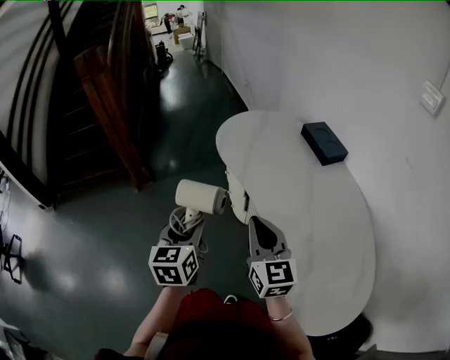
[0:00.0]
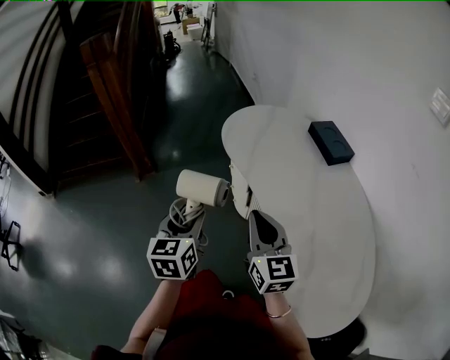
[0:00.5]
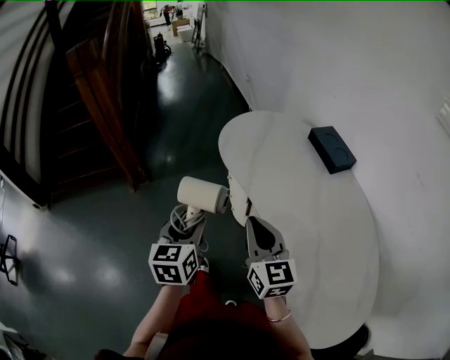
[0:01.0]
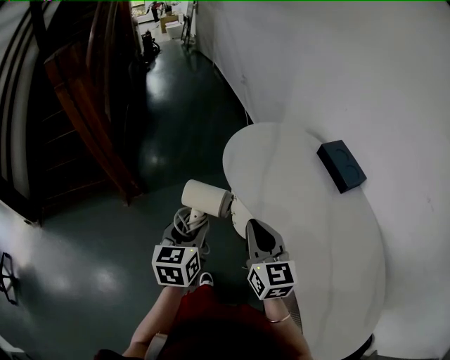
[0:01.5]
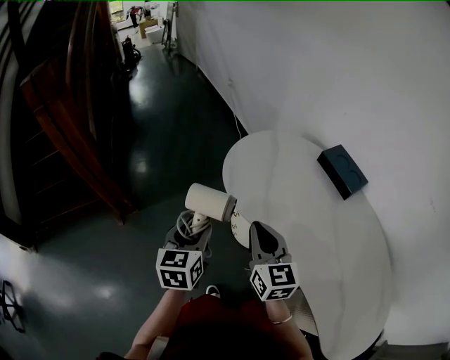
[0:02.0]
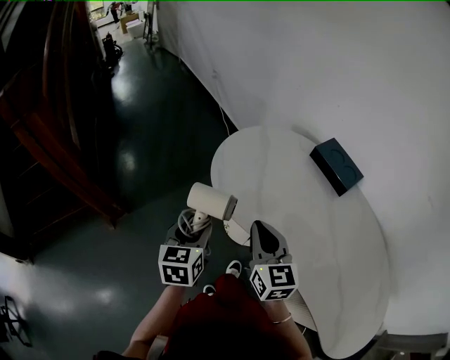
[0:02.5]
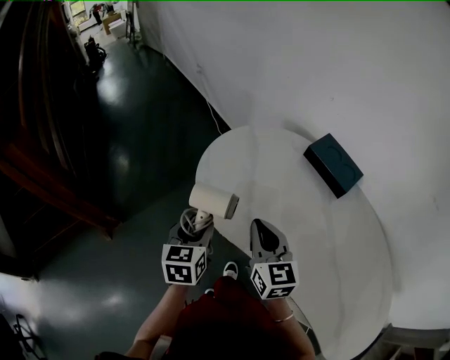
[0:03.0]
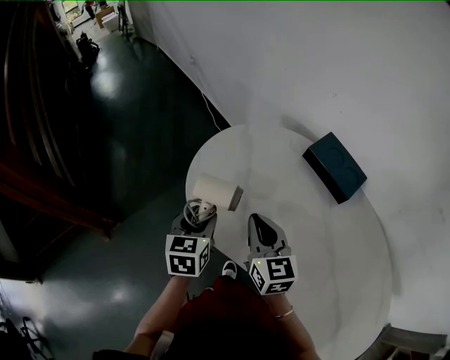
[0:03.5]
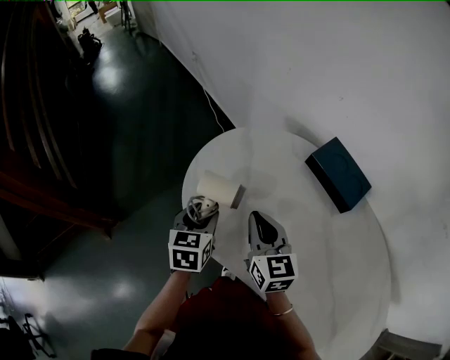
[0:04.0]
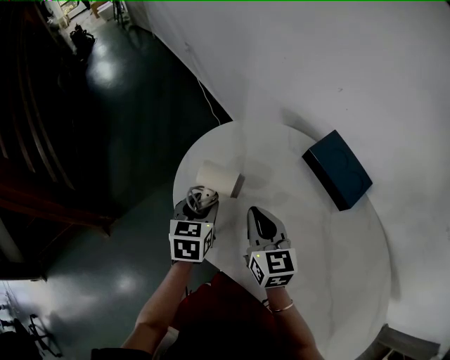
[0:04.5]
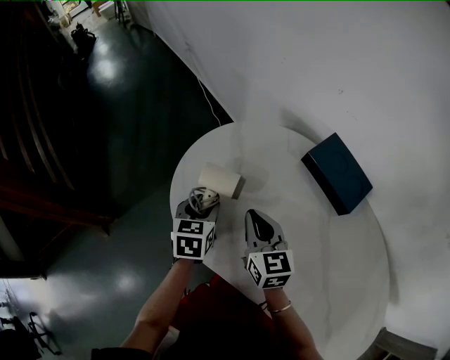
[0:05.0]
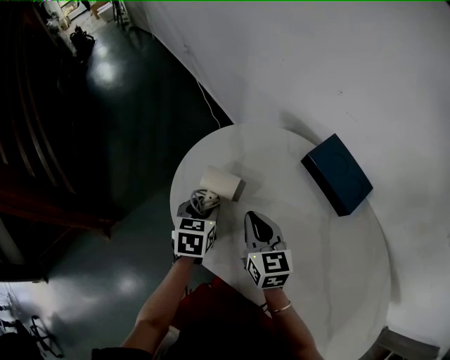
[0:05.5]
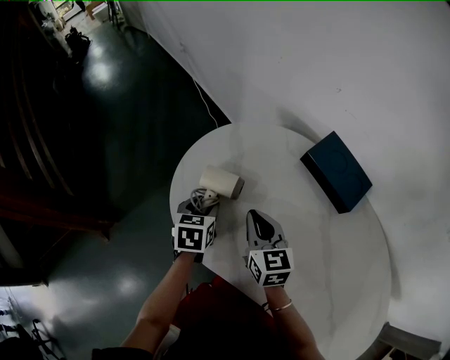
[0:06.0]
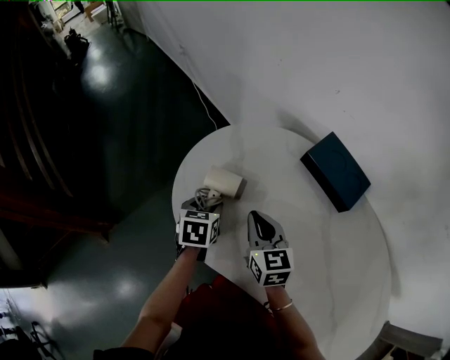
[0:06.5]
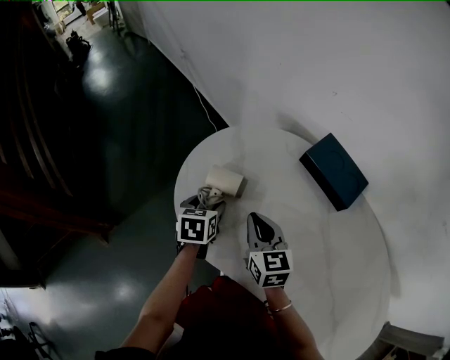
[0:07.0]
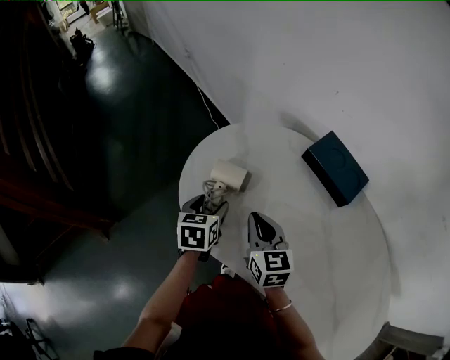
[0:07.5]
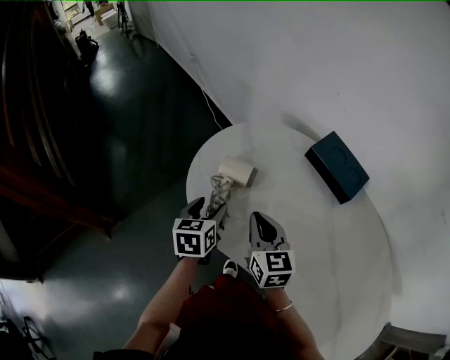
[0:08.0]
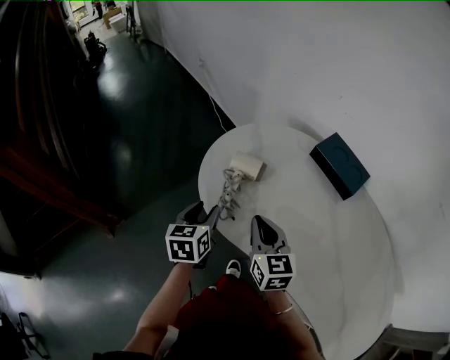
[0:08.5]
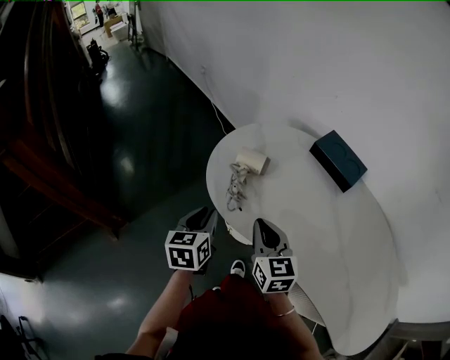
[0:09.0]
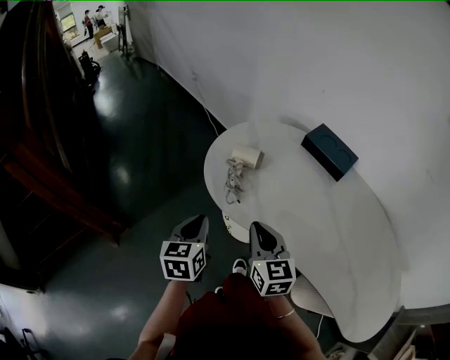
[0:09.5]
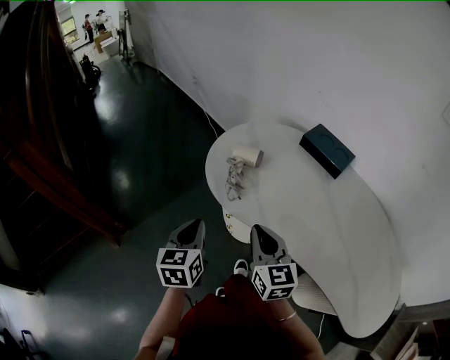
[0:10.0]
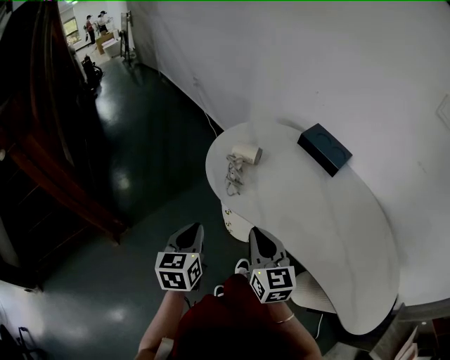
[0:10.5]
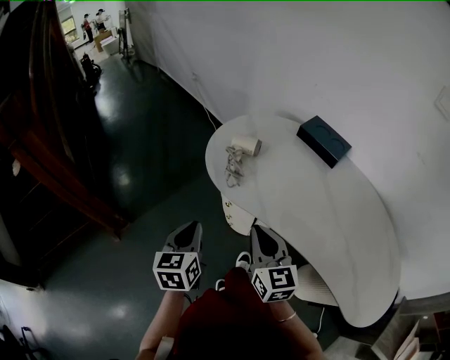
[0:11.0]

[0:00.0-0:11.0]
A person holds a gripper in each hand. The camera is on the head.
0:00.0 to 0:02.0: The grippers both shift forward by roughly 30 cm.
0:02.0 to 0:03.5: The two grippers go approximately 20 cm forward and to the right.
0:03.5 to 0:05.5: Both grippers travel together forward and downward, roughly 10 cm.
0:05.5 to 0:07.5: The grippers make only small movements.
0:07.5 to 0:09.0: The left gripper goes roughly 20 cm backward, to the left and upward, and closes up; the right gripper is displaced backward and to the left by about 15 cm.
0:09.0 to 0:11.0: The grippers both shift backward by some 15 cm.

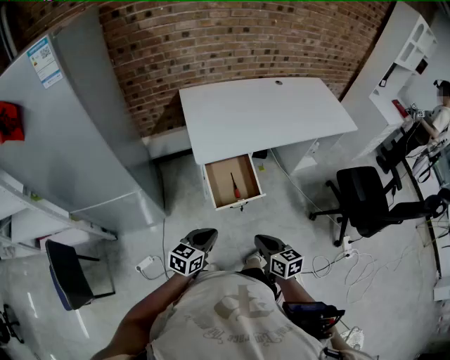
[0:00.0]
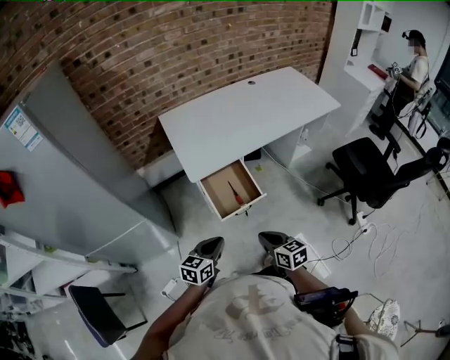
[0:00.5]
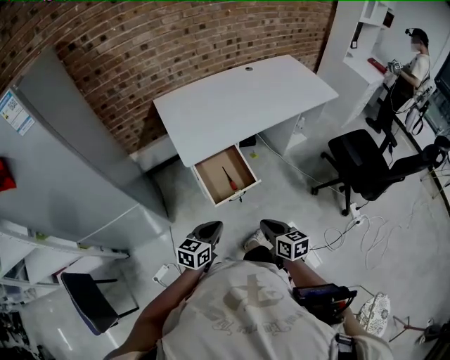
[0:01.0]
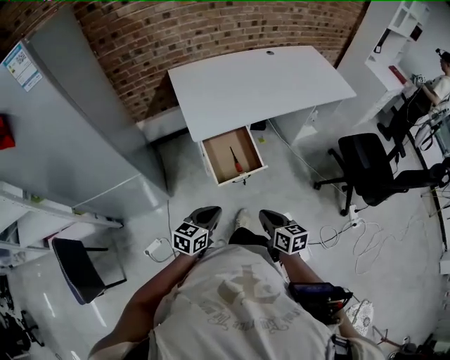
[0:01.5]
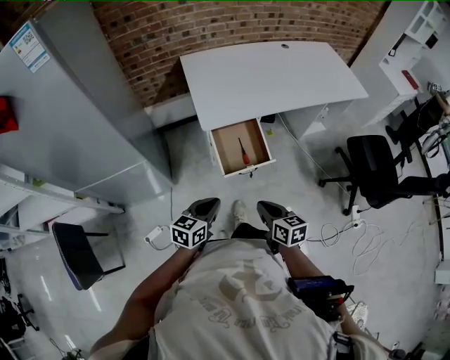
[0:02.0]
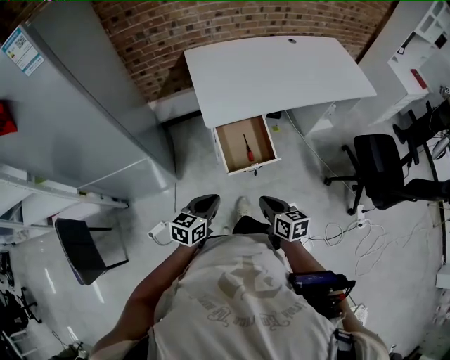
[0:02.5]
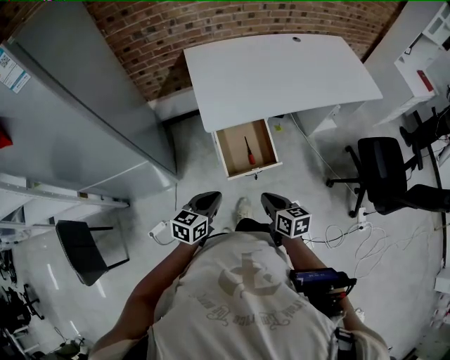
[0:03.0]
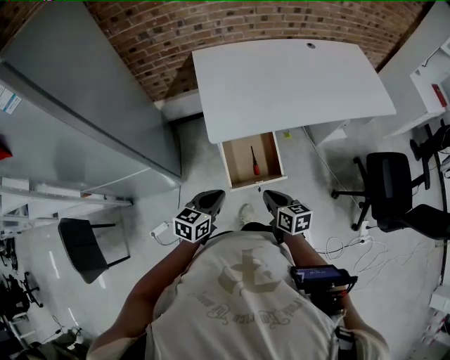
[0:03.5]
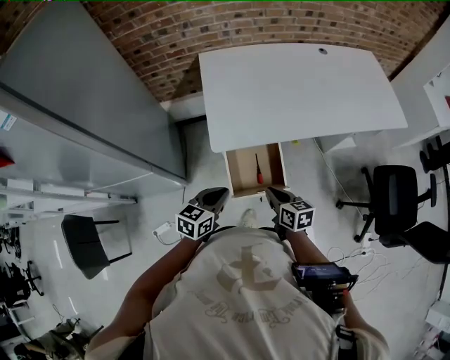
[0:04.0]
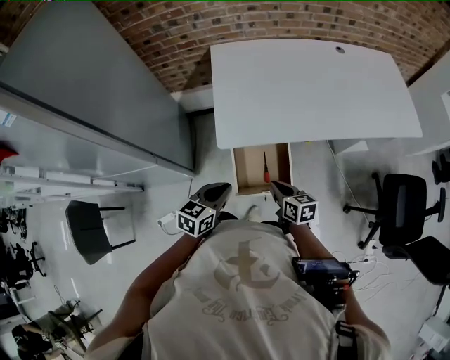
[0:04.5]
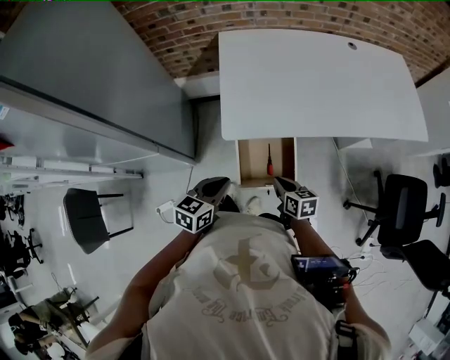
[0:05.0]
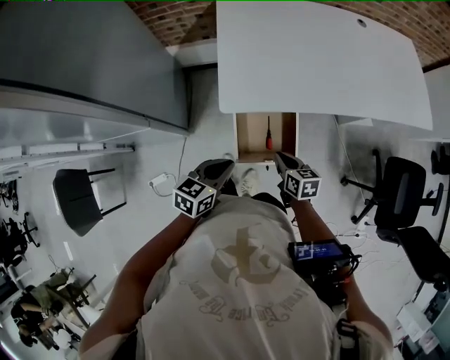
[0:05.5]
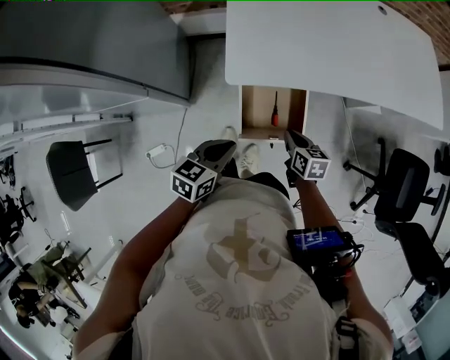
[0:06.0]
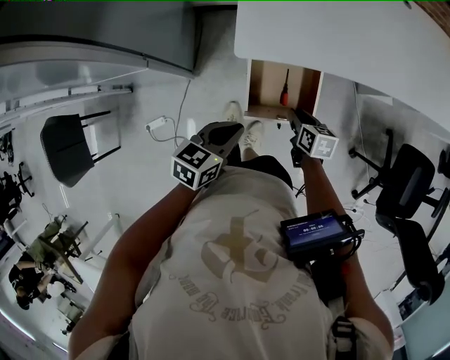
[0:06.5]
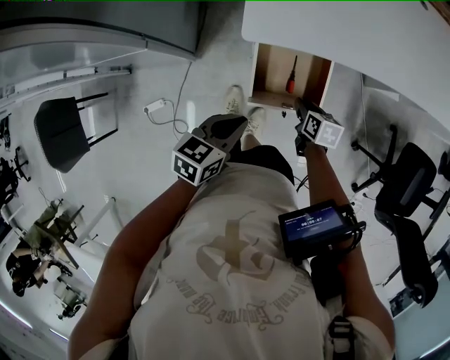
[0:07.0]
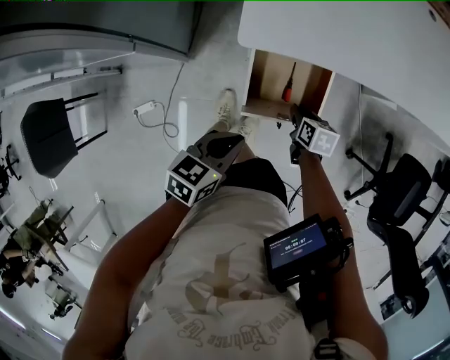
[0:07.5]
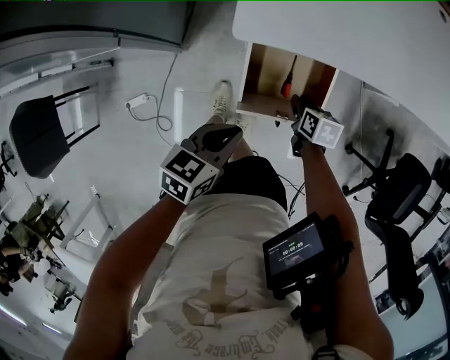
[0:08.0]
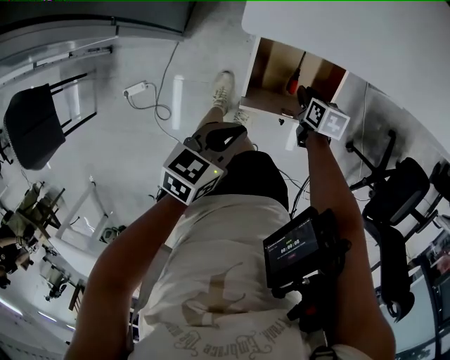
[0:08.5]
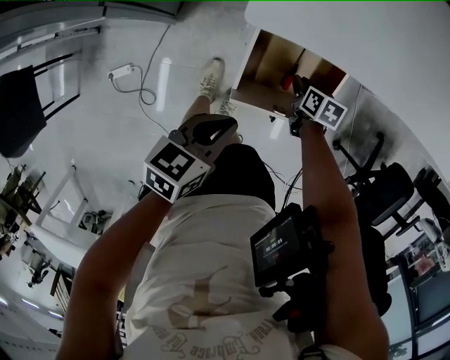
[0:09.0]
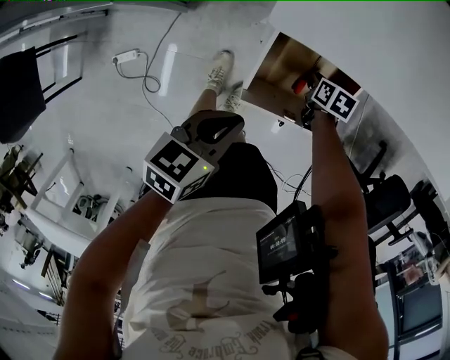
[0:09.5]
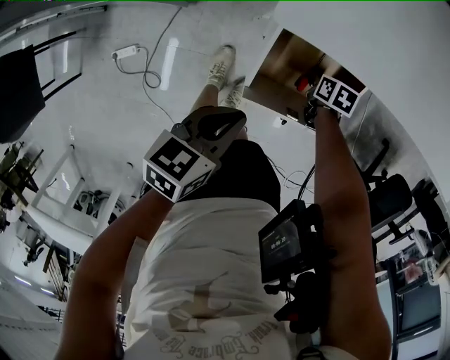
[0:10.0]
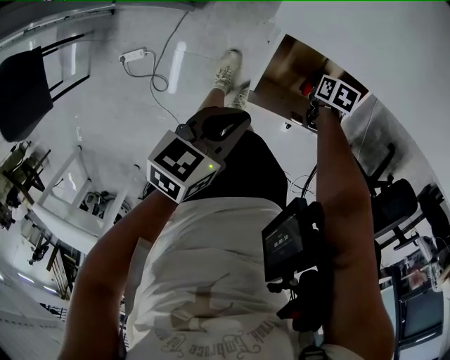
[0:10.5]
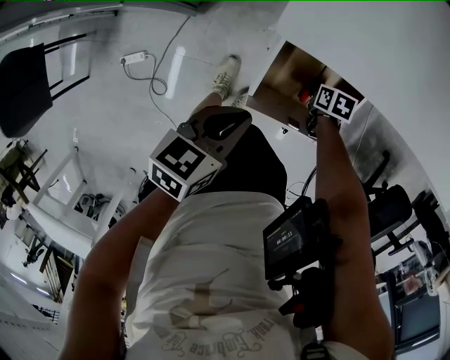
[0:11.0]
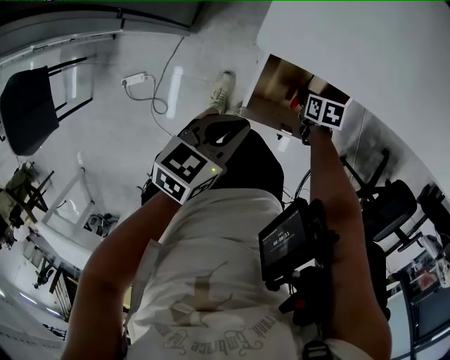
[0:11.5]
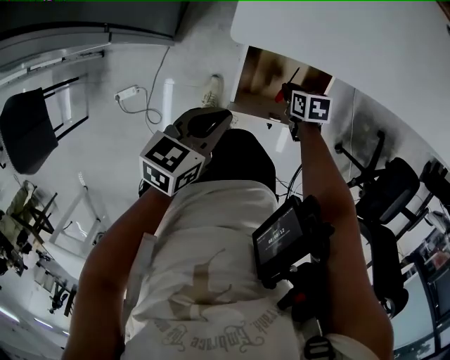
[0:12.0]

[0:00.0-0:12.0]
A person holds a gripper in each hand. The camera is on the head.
0:00.0 to 0:02.0: The grippers make only small movements.
0:02.0 to 0:04.0: Both grippers travel together forward, approximately 20 cm.
0:04.0 to 0:06.0: The left gripper travels downward by roughly 5 cm. The right gripper travels downward and forward by about 10 cm.
0:06.0 to 0:08.0: The left gripper is displaced downward by roughly 10 cm; the right gripper shifts approximately 15 cm downward.
0:08.0 to 0:10.0: The left gripper goes some 5 cm downward. Meanwhile the right gripper goes some 15 cm downward and forward.
0:10.0 to 0:12.0: Both grippers travel together upward, some 5 cm.

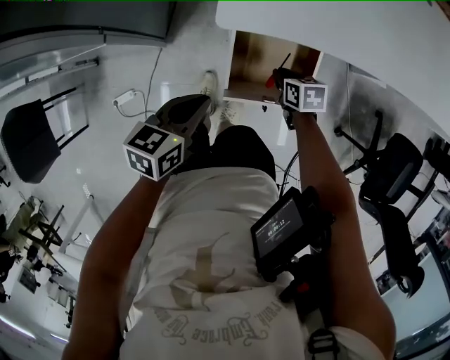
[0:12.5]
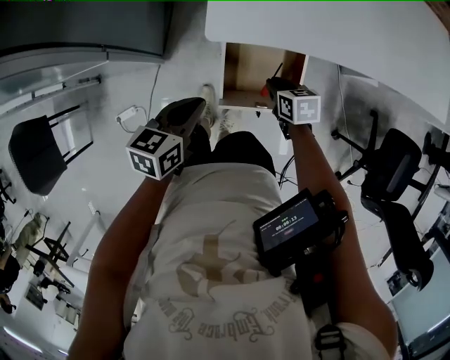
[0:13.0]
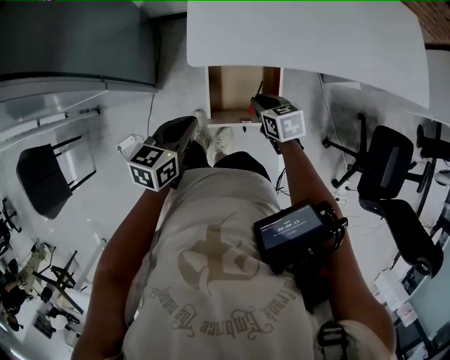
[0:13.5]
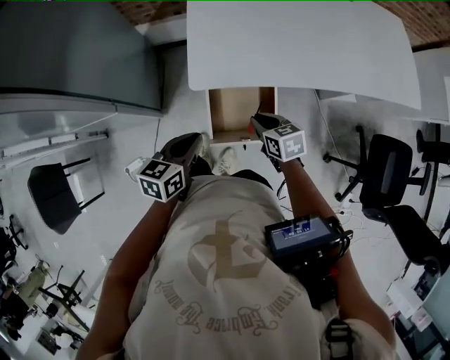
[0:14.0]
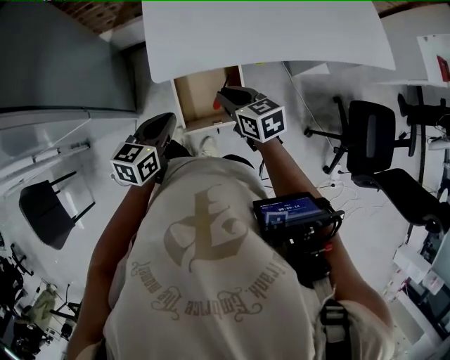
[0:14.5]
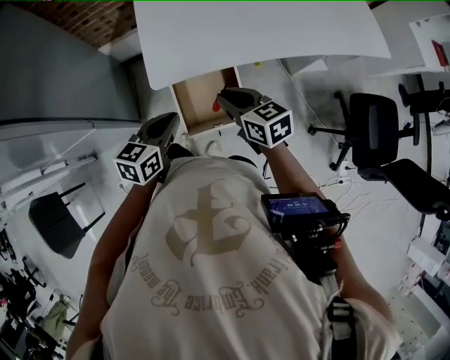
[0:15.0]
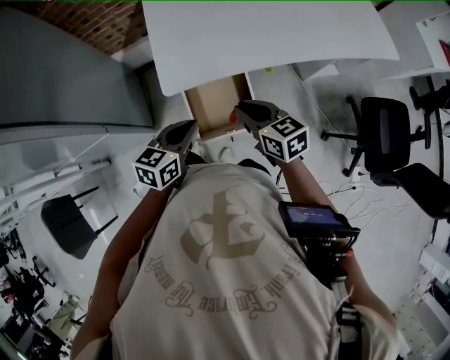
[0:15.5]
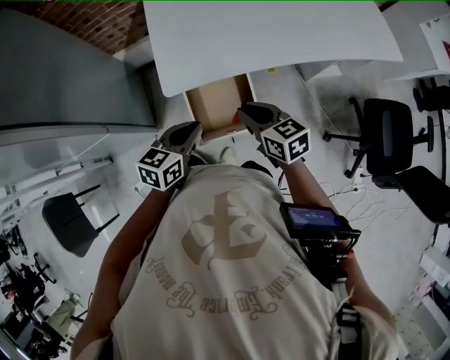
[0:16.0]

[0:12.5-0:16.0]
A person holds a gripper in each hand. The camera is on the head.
0:12.5 to 0:14.5: The right gripper heads upward, covering approximately 25 cm, and swivels some 30 degrees. The left gripper is displaced upward and to the right by about 10 cm.
0:14.5 to 0:16.0: The left gripper is displaced to the right by about 5 cm; the right gripper ends up some 5 cm from where it was.
